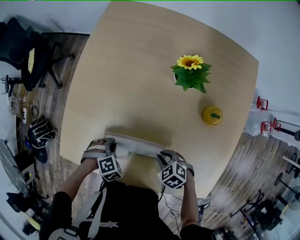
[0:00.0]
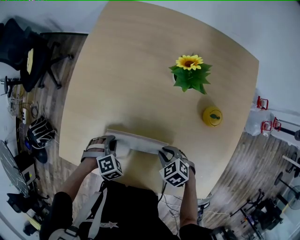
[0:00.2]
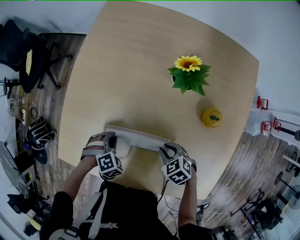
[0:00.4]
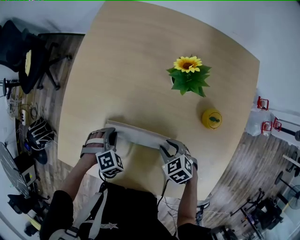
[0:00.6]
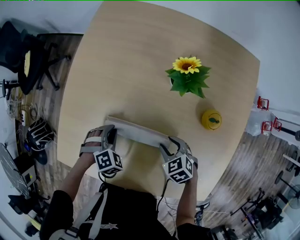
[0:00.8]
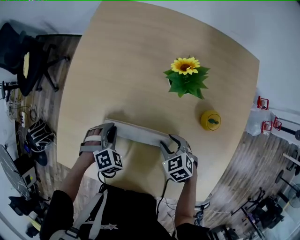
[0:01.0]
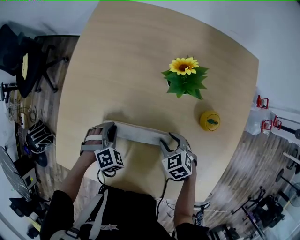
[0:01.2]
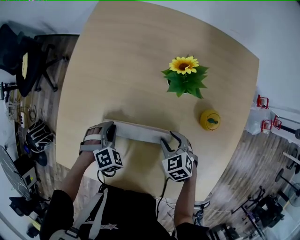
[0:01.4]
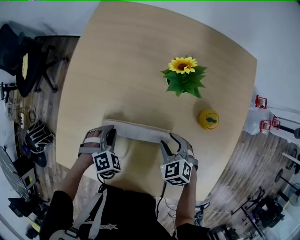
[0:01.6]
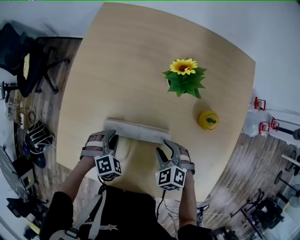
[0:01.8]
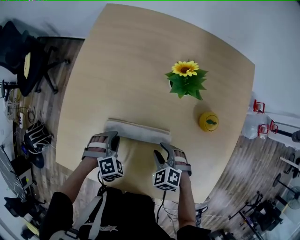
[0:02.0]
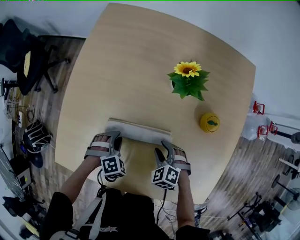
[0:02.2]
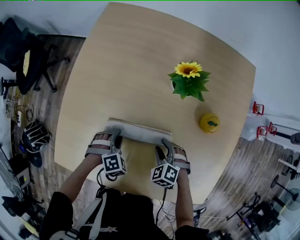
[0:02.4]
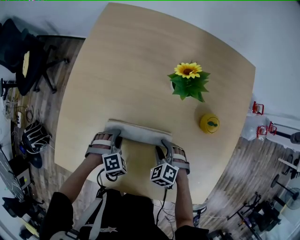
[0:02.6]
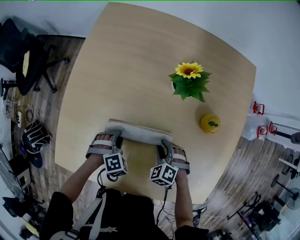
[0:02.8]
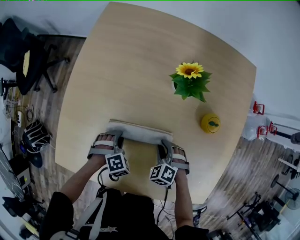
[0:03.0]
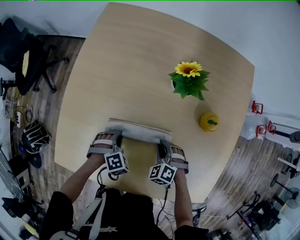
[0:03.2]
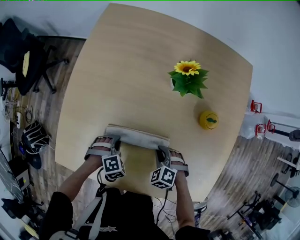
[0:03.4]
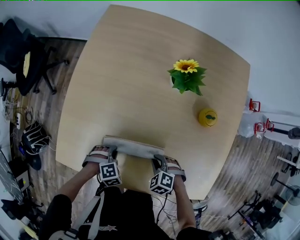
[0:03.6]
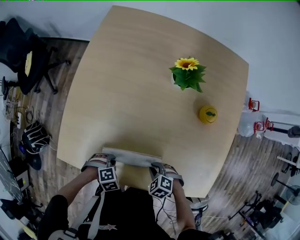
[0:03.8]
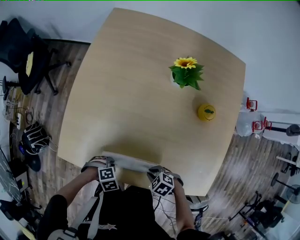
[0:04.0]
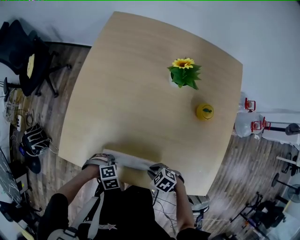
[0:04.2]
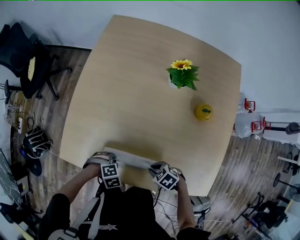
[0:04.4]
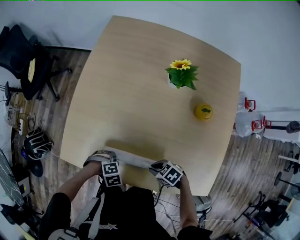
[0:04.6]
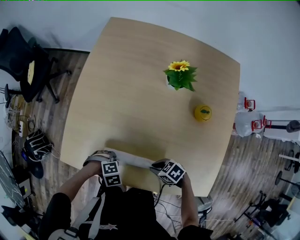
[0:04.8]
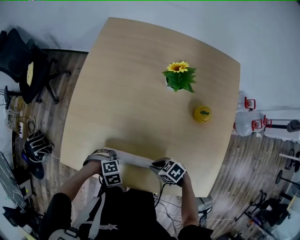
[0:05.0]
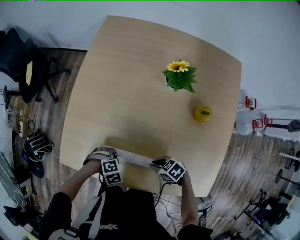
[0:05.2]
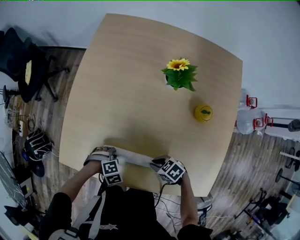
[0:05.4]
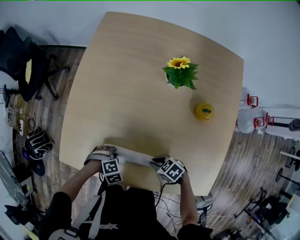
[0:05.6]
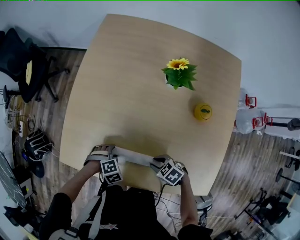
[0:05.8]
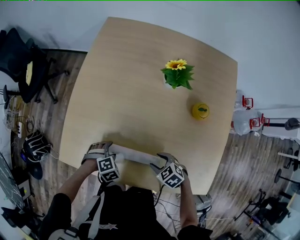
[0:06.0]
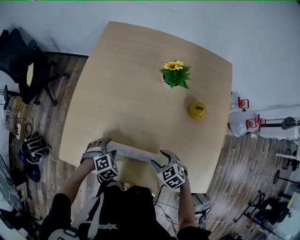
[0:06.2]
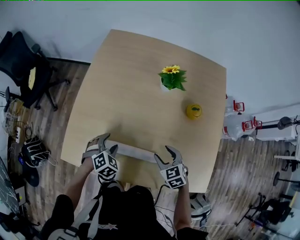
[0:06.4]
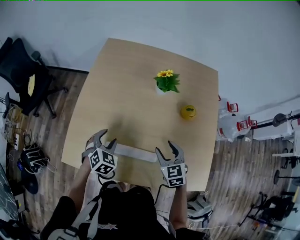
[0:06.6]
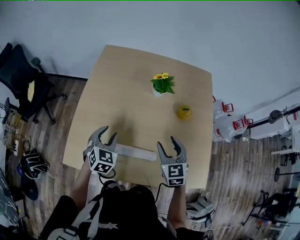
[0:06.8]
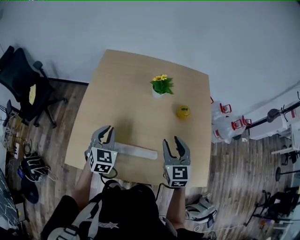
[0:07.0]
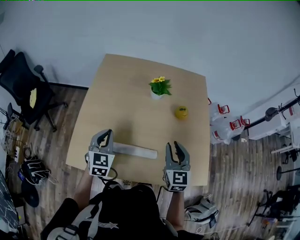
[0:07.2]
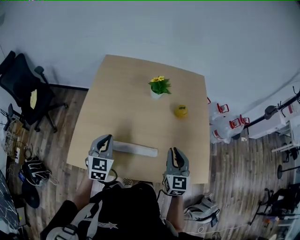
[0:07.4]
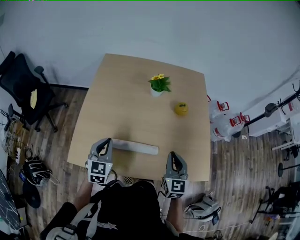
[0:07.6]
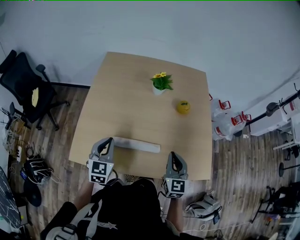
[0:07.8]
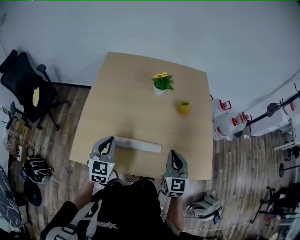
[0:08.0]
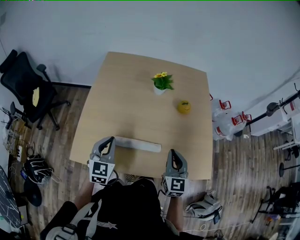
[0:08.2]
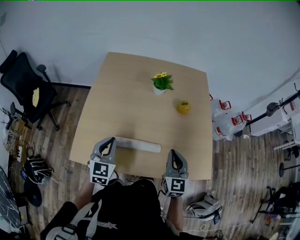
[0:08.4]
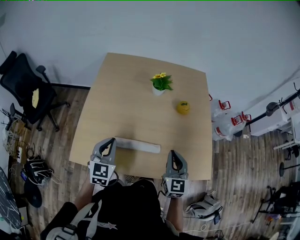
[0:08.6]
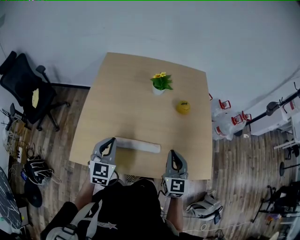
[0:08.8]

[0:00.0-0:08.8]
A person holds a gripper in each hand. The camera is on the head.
0:00.0 to 0:01.4: The right gripper moves about 15 cm, turns by approximately 20 degrees, and opens.
0:01.4 to 0:03.0: The right gripper moves approximately 5 cm, and swivels about 30 degrees.
0:03.0 to 0:04.4: The right gripper changes place by roughly 20 cm, and changes its angle by roughly 50 degrees.
0:04.4 to 0:05.8: The right gripper changes place by roughly 5 cm.
0:05.8 to 0:07.4: The right gripper moves upward, roughly 25 cm, points its fingers roughly 40 degrees further upward, and opens, then closes again.

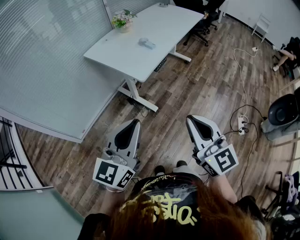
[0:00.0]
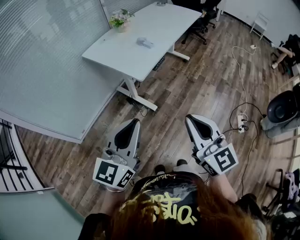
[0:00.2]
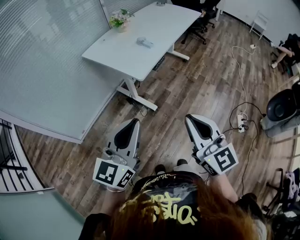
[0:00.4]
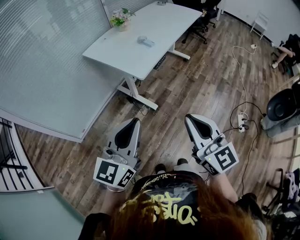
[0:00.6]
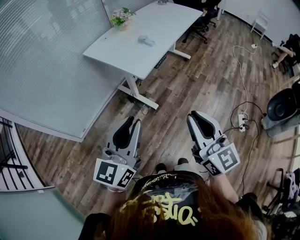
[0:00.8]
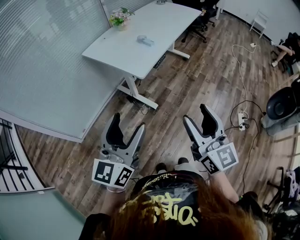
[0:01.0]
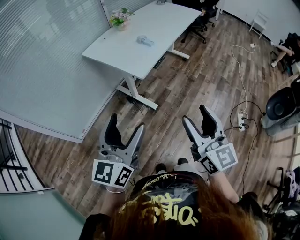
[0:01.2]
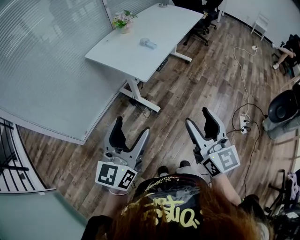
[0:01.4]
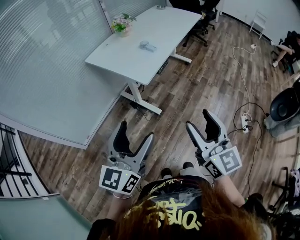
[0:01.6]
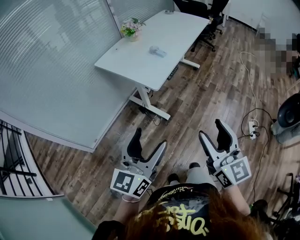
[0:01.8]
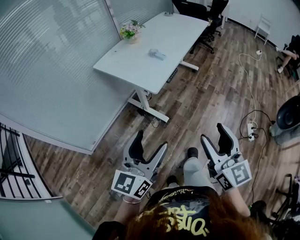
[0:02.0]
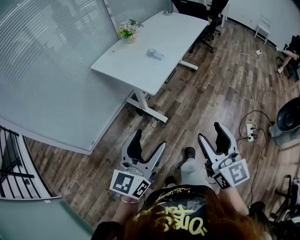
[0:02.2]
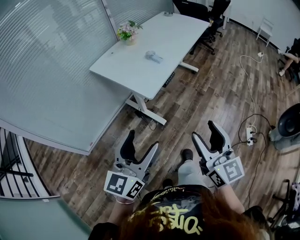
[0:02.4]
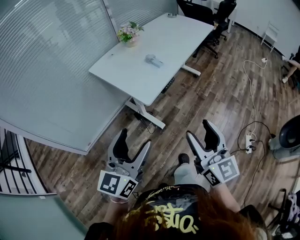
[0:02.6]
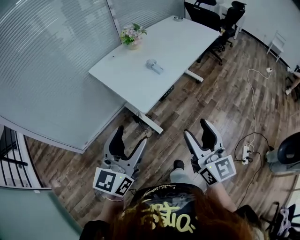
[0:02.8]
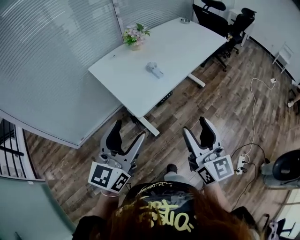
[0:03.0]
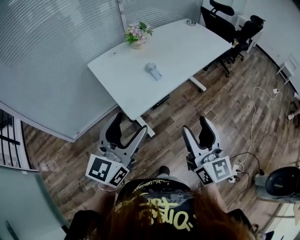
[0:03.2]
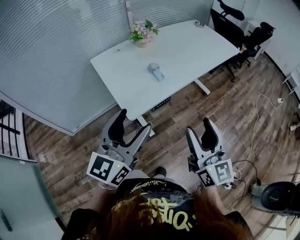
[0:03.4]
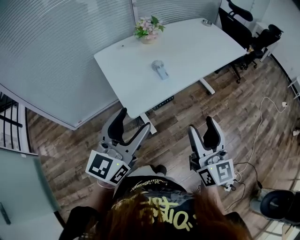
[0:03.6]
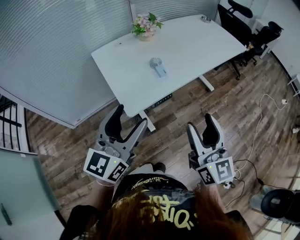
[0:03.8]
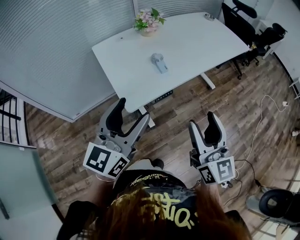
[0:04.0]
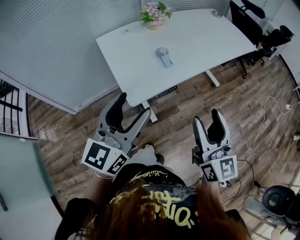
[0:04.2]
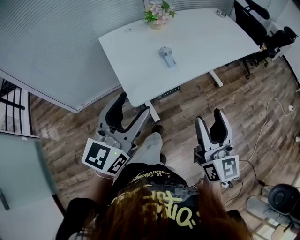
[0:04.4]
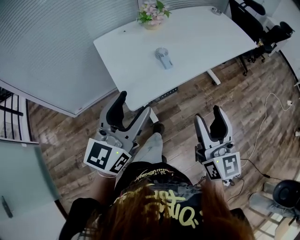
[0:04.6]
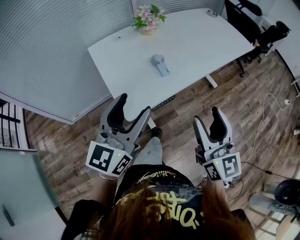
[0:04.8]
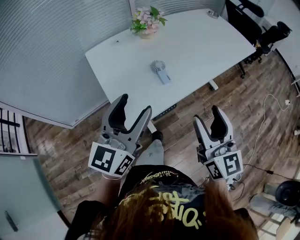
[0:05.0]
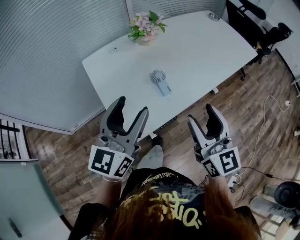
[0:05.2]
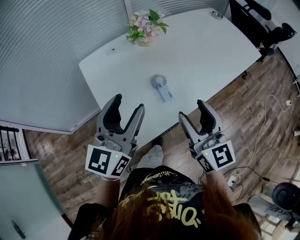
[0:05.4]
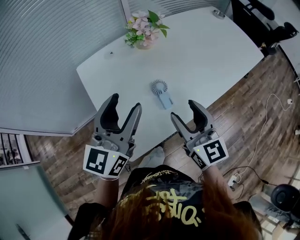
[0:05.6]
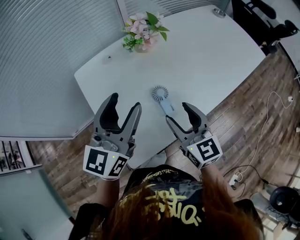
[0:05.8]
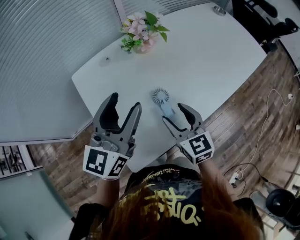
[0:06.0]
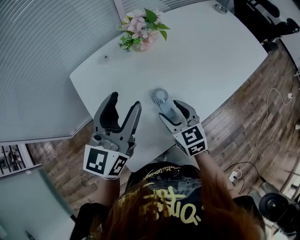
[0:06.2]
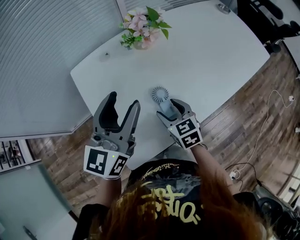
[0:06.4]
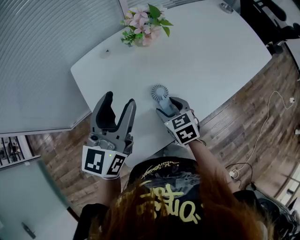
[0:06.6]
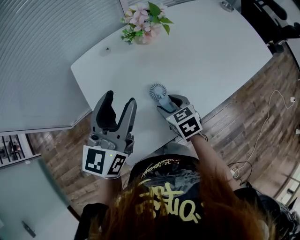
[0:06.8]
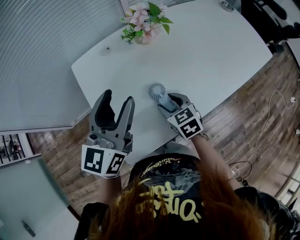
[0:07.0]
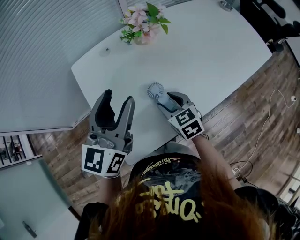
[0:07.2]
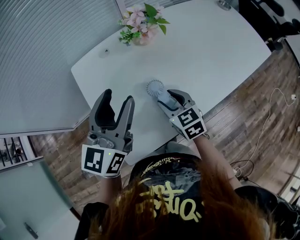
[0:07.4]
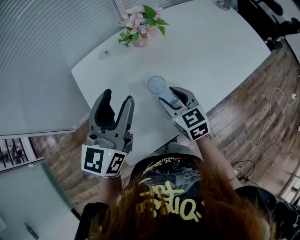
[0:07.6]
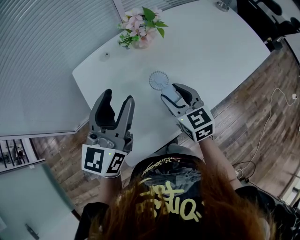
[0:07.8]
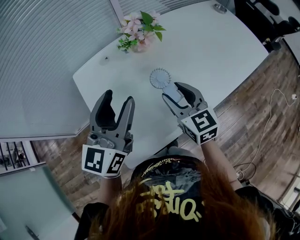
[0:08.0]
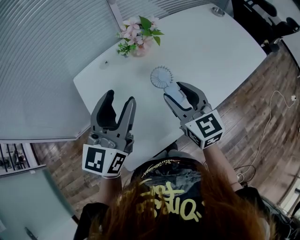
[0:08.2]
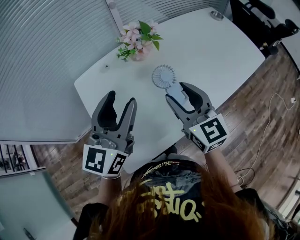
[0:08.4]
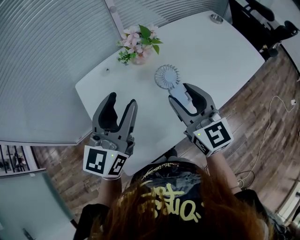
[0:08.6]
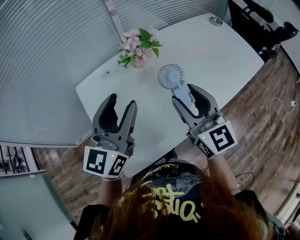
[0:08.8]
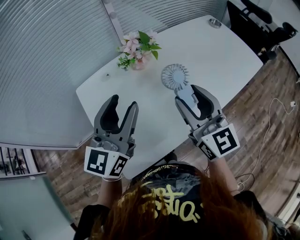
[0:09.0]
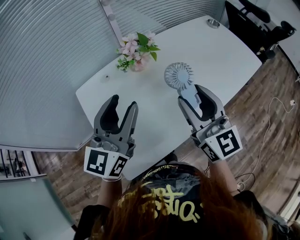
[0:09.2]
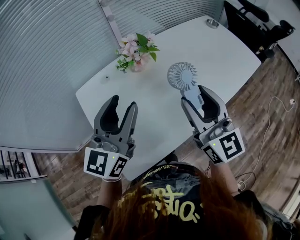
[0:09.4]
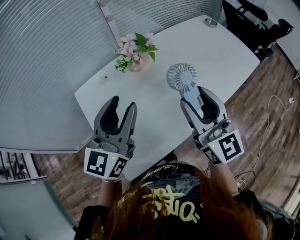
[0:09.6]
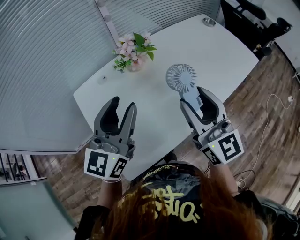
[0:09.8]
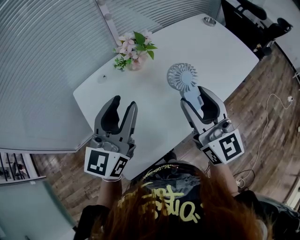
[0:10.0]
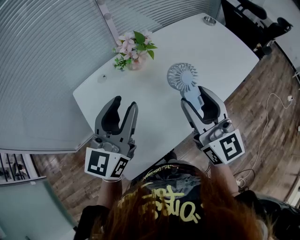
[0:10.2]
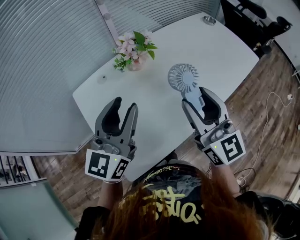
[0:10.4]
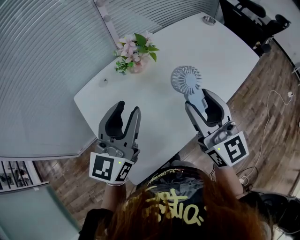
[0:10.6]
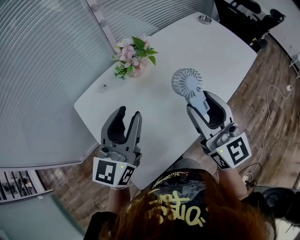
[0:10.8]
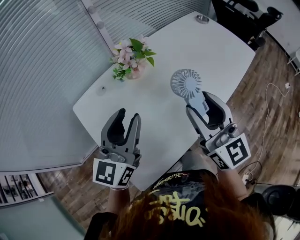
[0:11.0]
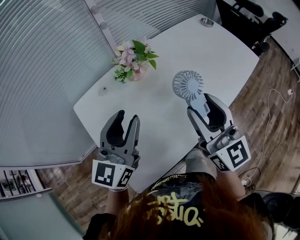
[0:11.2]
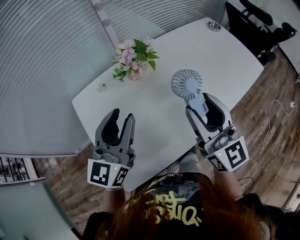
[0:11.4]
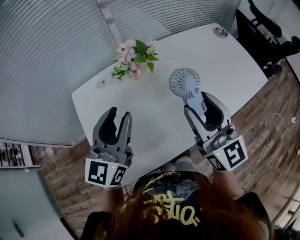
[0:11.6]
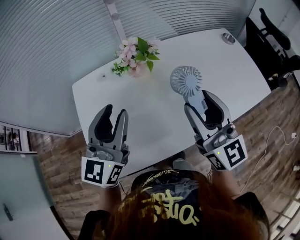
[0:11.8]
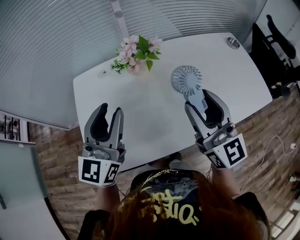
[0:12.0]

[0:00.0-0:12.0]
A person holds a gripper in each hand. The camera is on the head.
0:00.0 to 0:01.6: The right gripper opens. The left gripper opens up.
0:01.6 to 0:03.0: Both grippers move forward, approximately 20 cm.
0:03.0 to 0:04.4: The two grippers go roughly 10 cm forward and to the right.
0:04.4 to 0:06.0: The right gripper travels forward and downward by roughly 35 cm, and changes its angle by some 30 degrees, while the left gripper goes about 35 cm forward.
0:06.0 to 0:07.6: The right gripper moves some 10 cm downward and comes back.
0:07.6 to 0:09.0: The left gripper shifts by roughly 5 cm. Meanwhile the right gripper is displaced upward and to the right by some 20 cm, and tips its fingers upward by roughly 30 degrees.
0:09.0 to 0:10.4: The grippers stay close to where they were, moving slightly.
0:10.4 to 0:12.0: The right gripper is displaced to the right and forward by some 10 cm. The left gripper rotates about 20 degrees.

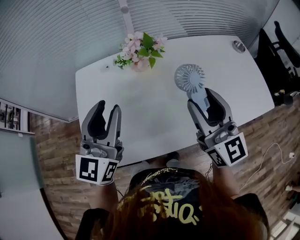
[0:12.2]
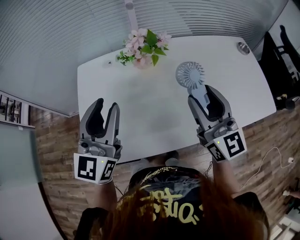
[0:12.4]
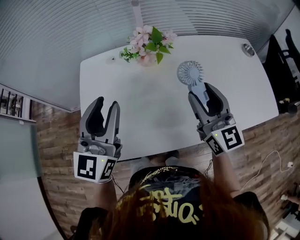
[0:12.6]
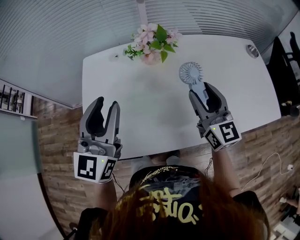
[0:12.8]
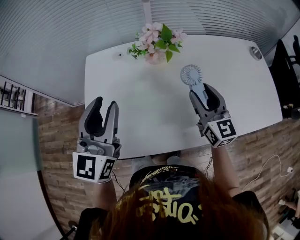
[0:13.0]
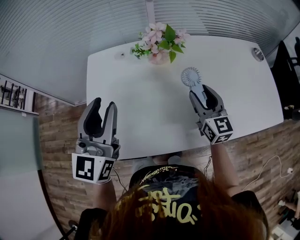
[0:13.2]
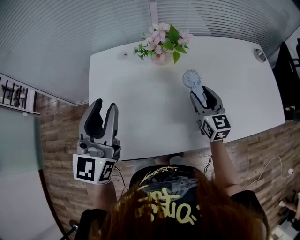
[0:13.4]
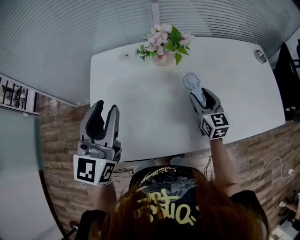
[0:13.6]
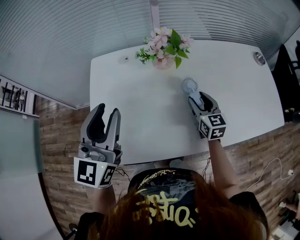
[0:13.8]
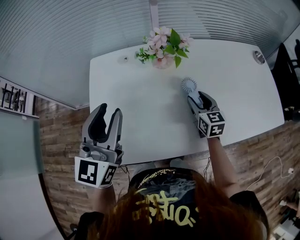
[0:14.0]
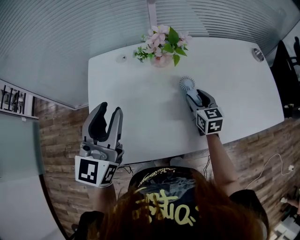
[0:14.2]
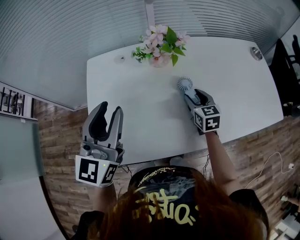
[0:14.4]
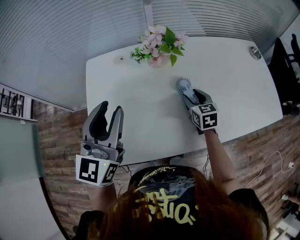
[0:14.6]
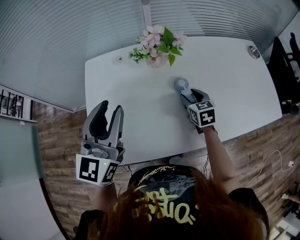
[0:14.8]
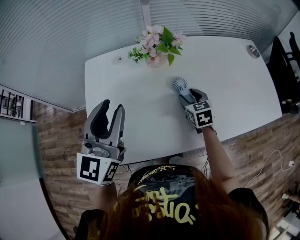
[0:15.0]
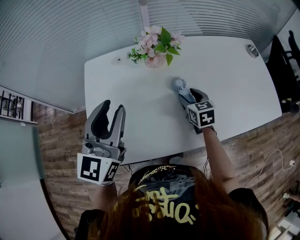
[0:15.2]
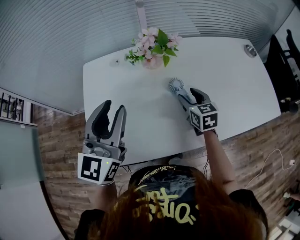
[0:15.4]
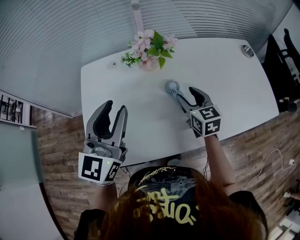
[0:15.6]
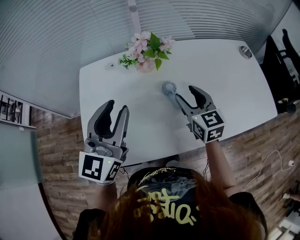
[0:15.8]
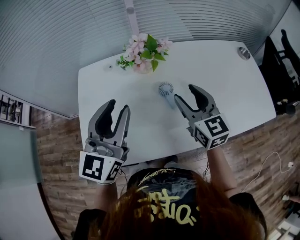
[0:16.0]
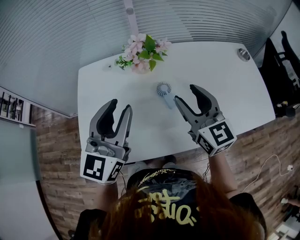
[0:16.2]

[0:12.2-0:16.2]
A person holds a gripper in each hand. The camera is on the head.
0:12.2 to 0:13.6: The left gripper is displaced to the left by some 5 cm. The right gripper moves downward and forward, roughly 25 cm, and turns by roughly 30 degrees.
0:13.6 to 0:14.8: The right gripper goes approximately 5 cm downward, and turns by approximately 20 degrees.
0:14.8 to 0:16.2: The left gripper is displaced to the right by some 10 cm; the right gripper is displaced upward by roughly 20 cm, and points its fingers some 30 degrees further upward.
